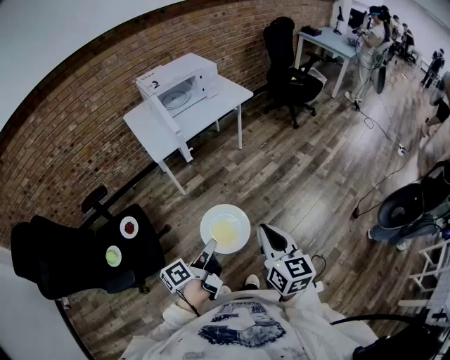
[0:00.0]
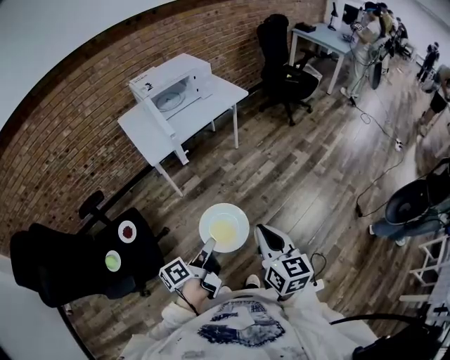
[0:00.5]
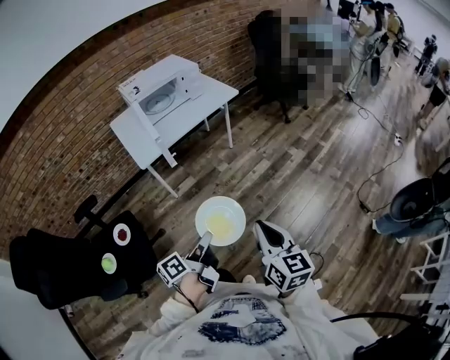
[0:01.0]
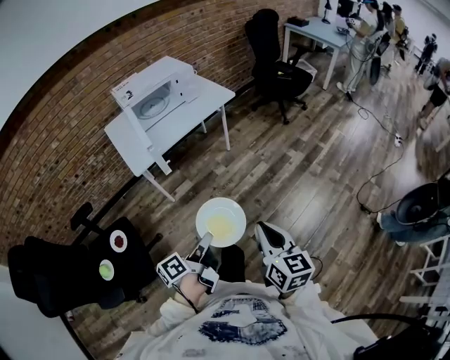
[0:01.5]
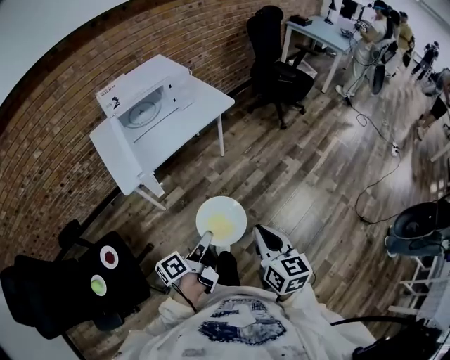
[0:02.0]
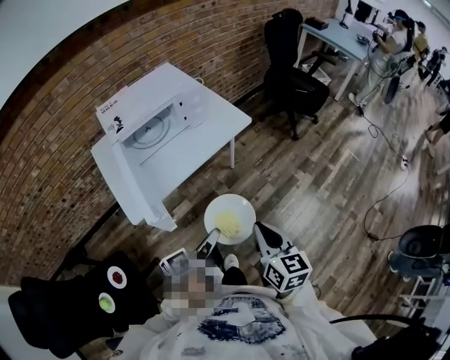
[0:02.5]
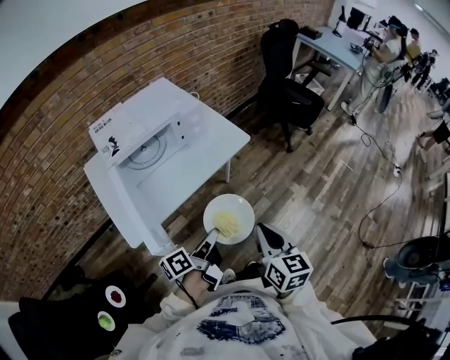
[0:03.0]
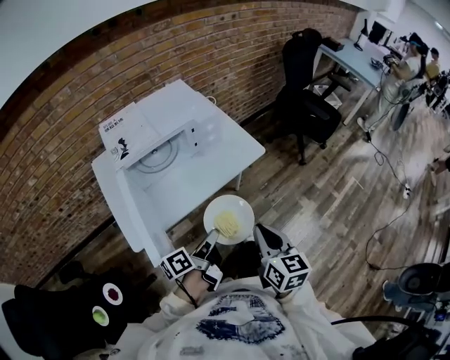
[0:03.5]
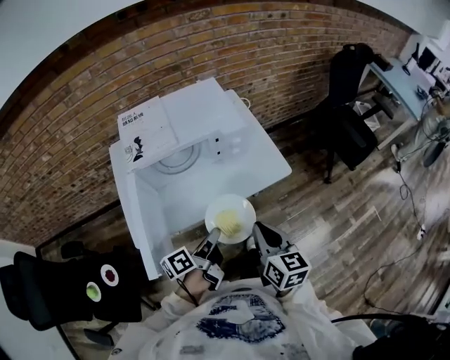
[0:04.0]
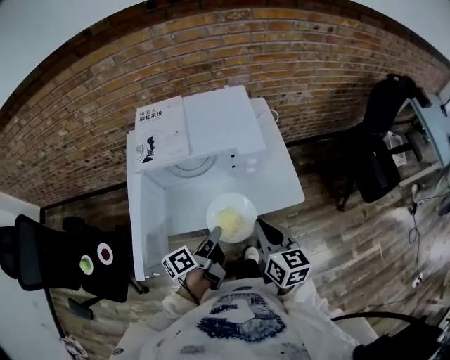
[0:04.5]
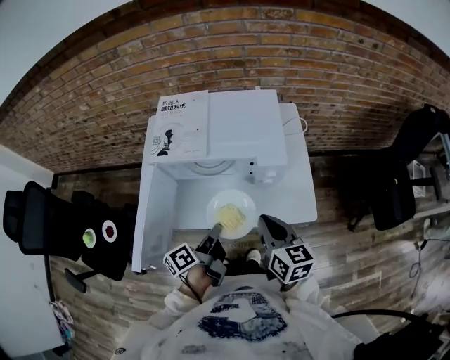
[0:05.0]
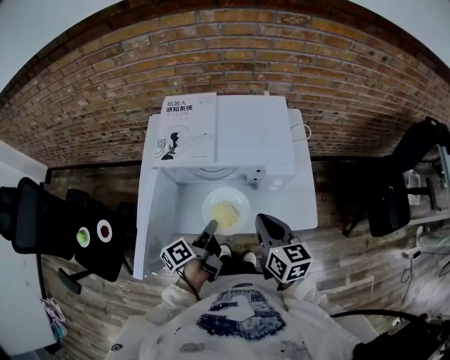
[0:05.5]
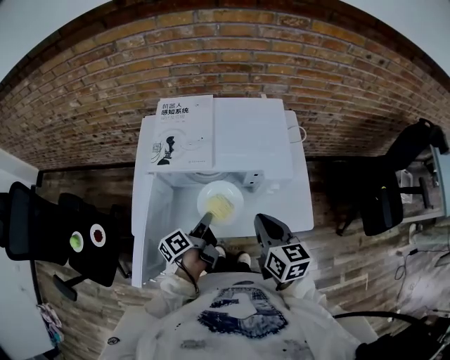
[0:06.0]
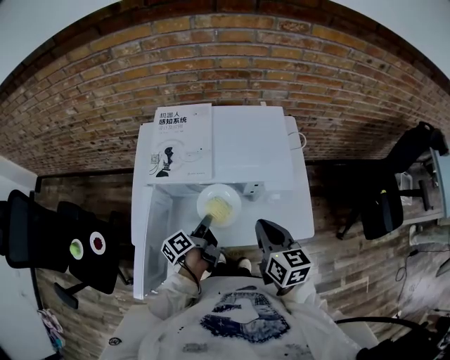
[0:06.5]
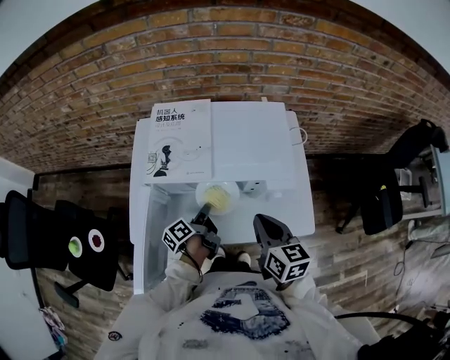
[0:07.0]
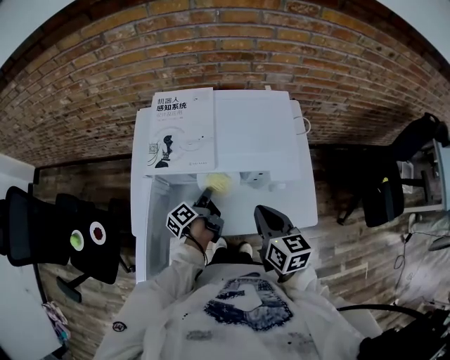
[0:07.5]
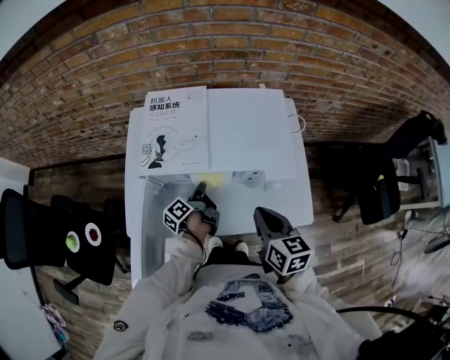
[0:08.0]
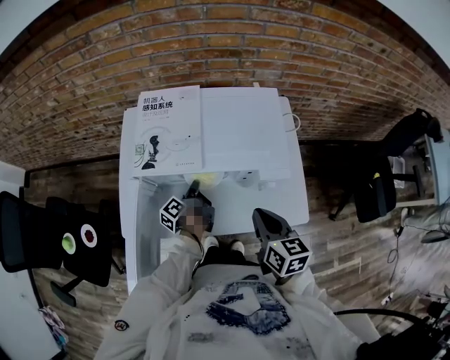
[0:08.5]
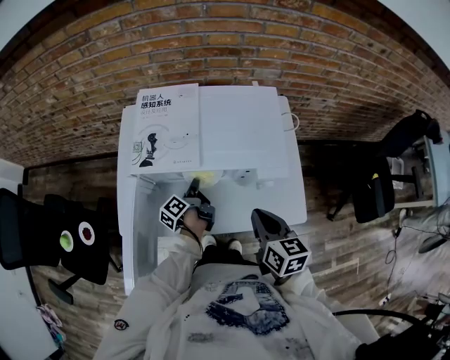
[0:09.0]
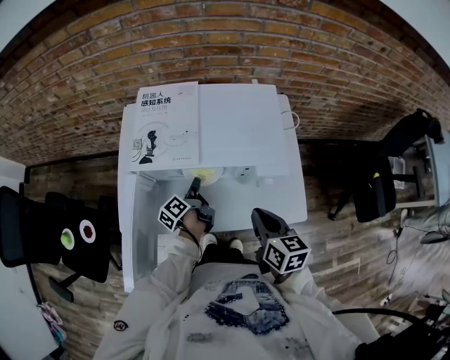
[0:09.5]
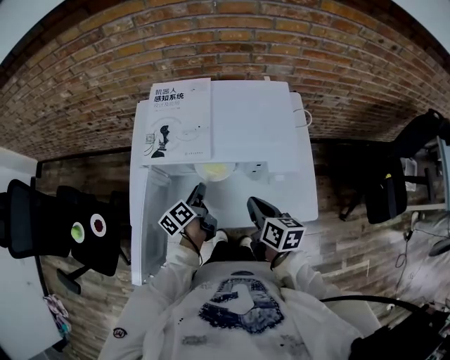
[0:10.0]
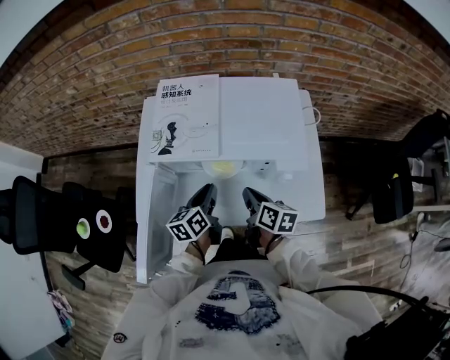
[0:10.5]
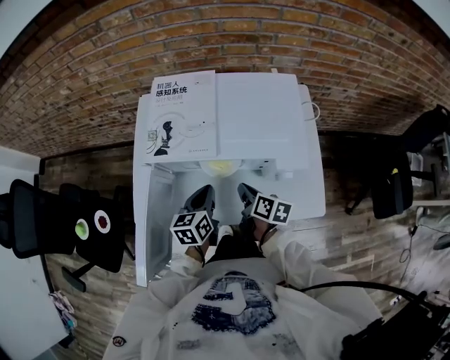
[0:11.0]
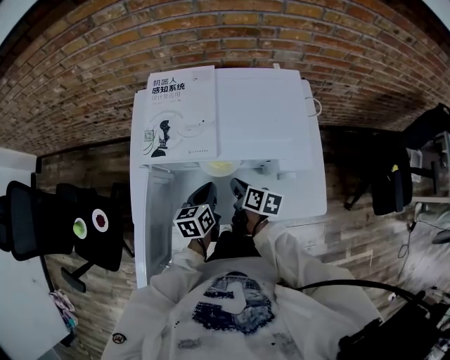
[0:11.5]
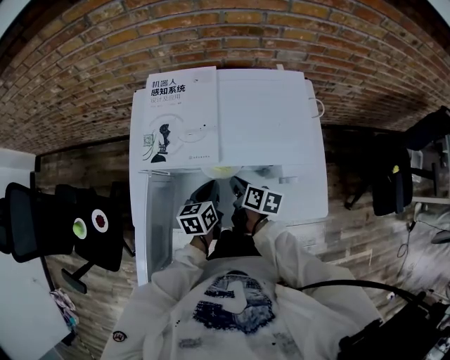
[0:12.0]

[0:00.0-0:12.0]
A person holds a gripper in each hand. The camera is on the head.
0:00.0 to 0:02.0: Both grippers move forward, some 25 cm.
0:02.0 to 0:04.0: The pair of grippers is taken forward, about 40 cm.
0:04.0 to 0:06.0: The right gripper ends up roughly 20 cm from where it was, and changes its angle by approximately 20 degrees; the left gripper changes place by some 20 cm, and rotates about 30 degrees.
0:06.0 to 0:08.0: The left gripper goes roughly 15 cm forward and downward.
0:08.0 to 0:10.0: The right gripper goes roughly 5 cm downward, while the left gripper swivels some 20 degrees, and opens its fingers.
0:10.0 to 0:12.0: The left gripper swivels approximately 40 degrees, and closes; the right gripper goes about 15 cm downward, forward and to the left.

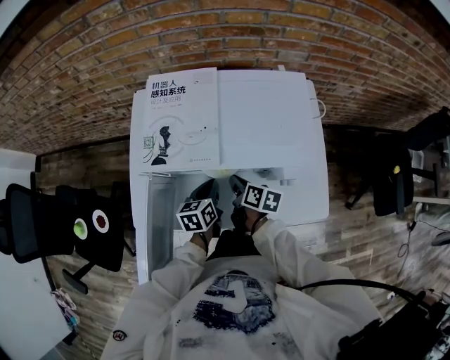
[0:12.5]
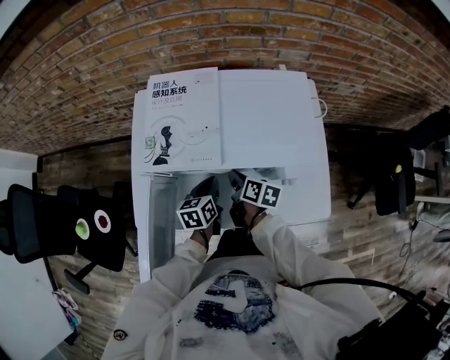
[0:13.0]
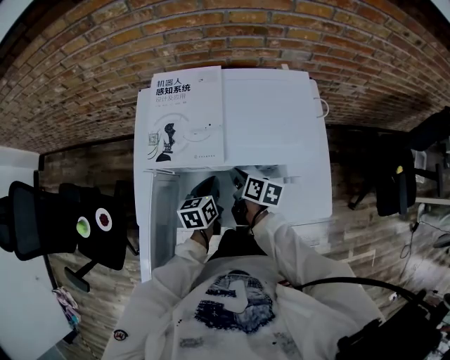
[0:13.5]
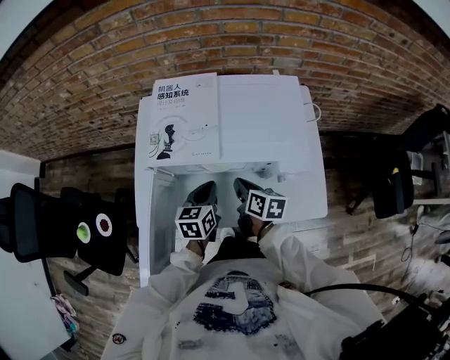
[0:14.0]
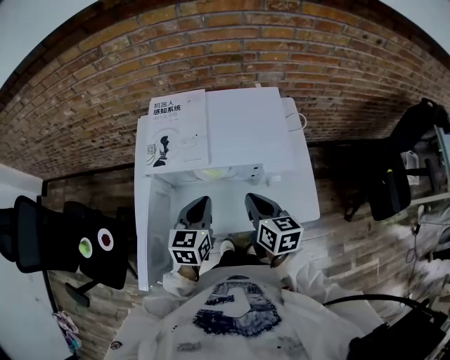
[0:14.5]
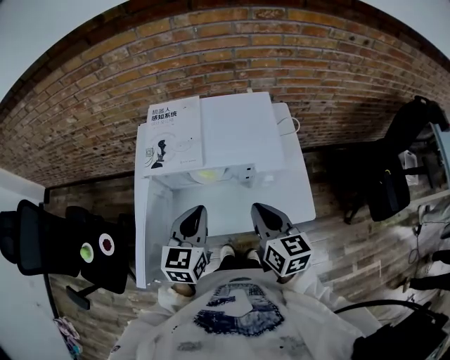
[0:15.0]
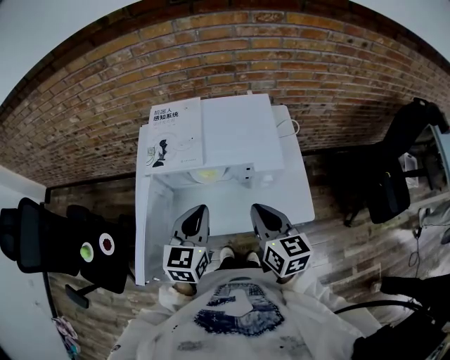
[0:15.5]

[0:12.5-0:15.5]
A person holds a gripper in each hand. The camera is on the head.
0:12.5 to 0:14.0: Both grippers travel together upward, about 5 cm.
0:14.0 to 0:15.5: The left gripper goes about 20 cm upward and backward, and swivels roughly 20 degrees. The right gripper goes approximately 25 cm upward, backward and to the right, and changes its angle by some 30 degrees.

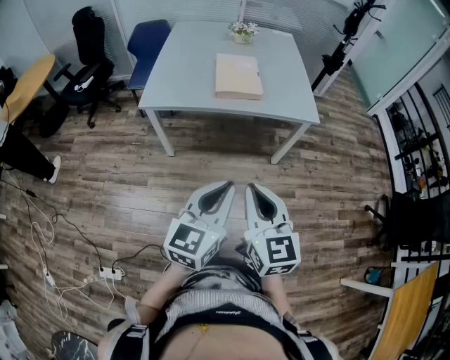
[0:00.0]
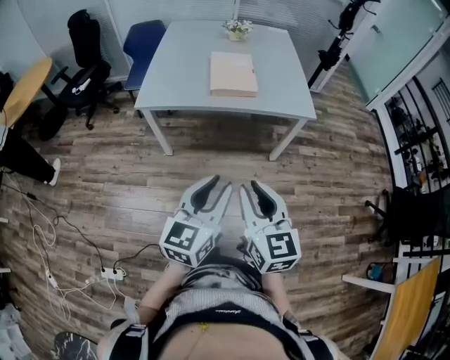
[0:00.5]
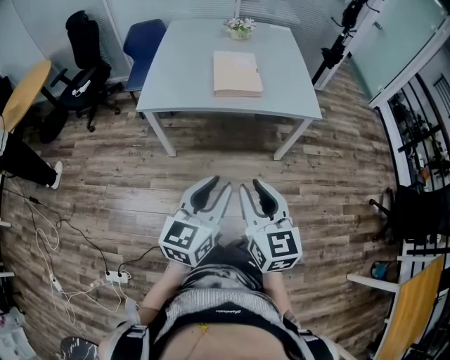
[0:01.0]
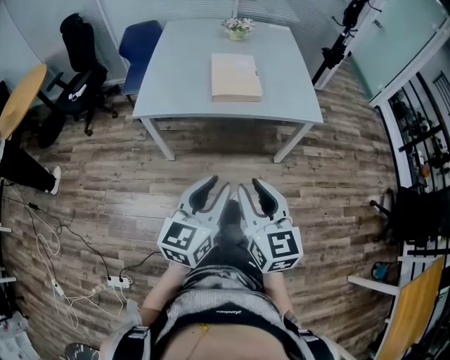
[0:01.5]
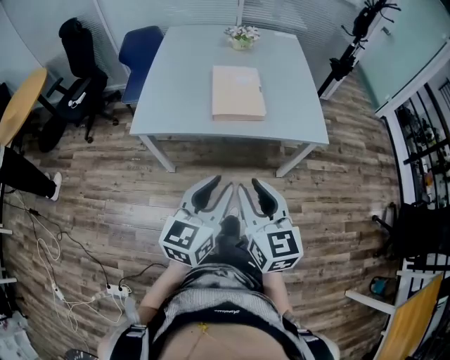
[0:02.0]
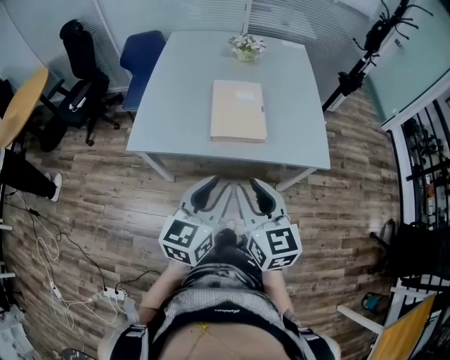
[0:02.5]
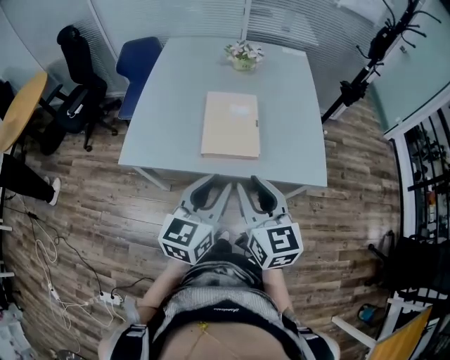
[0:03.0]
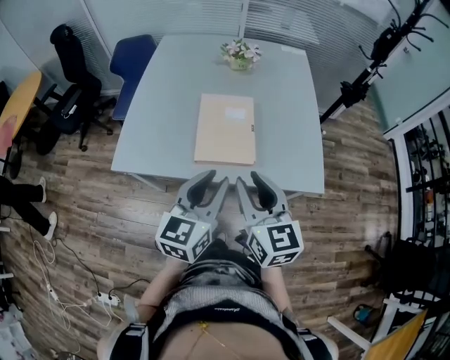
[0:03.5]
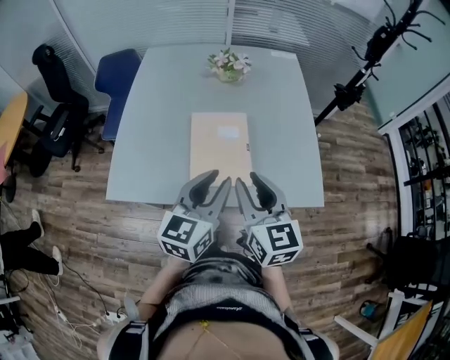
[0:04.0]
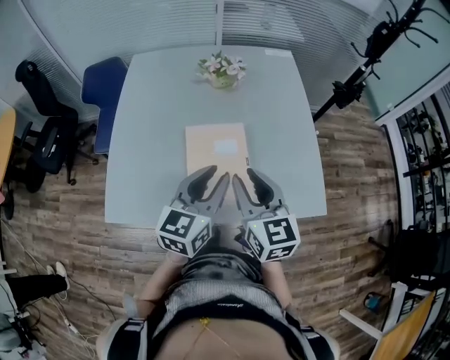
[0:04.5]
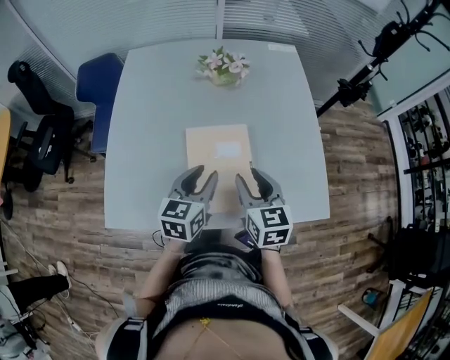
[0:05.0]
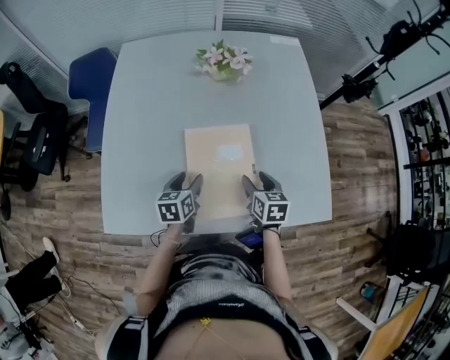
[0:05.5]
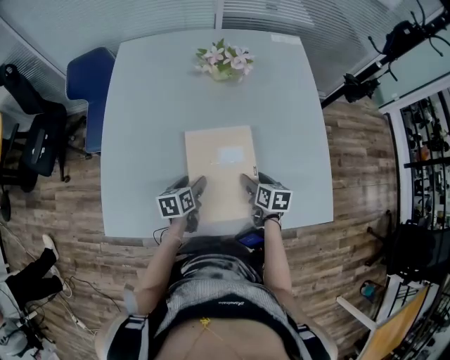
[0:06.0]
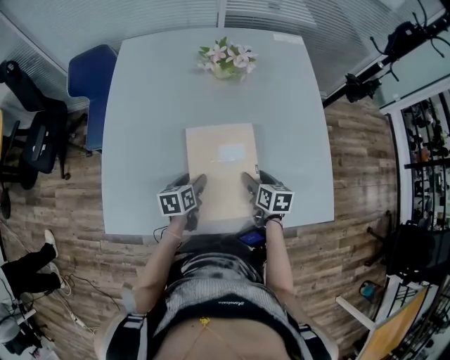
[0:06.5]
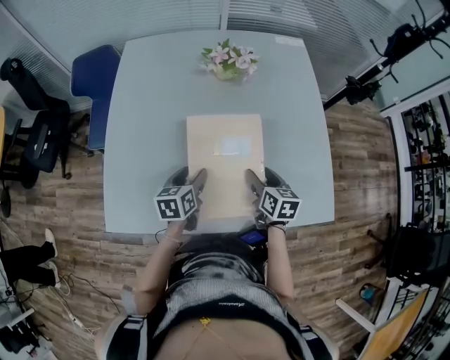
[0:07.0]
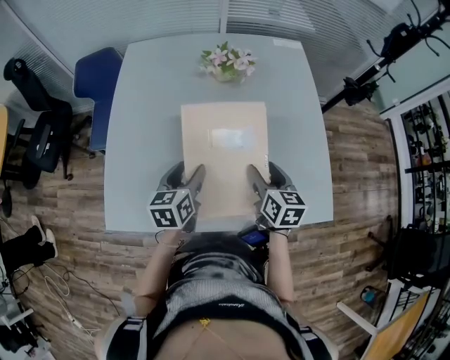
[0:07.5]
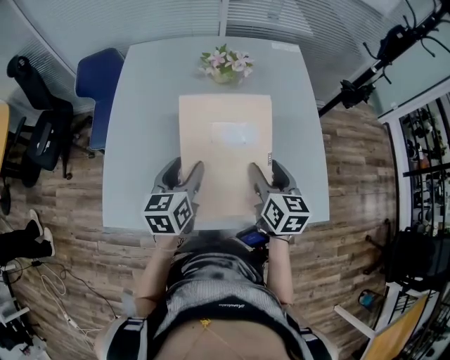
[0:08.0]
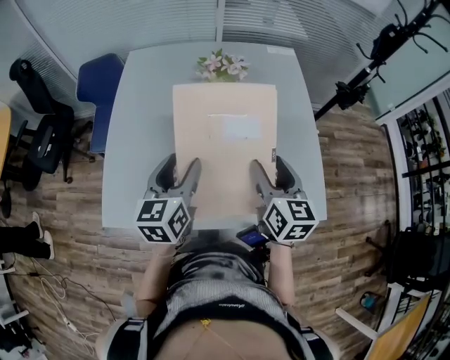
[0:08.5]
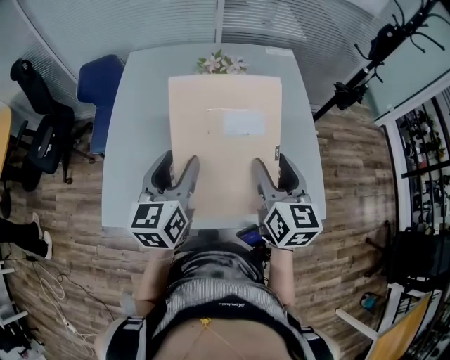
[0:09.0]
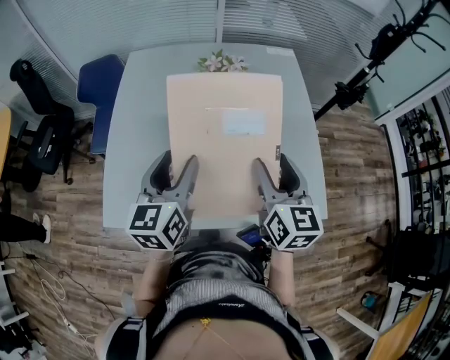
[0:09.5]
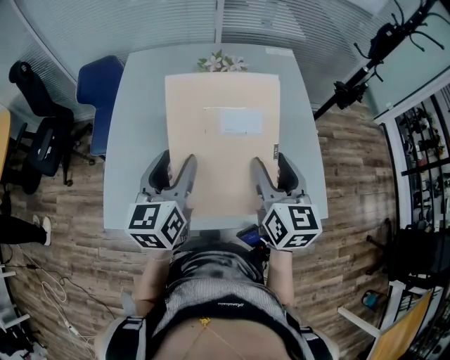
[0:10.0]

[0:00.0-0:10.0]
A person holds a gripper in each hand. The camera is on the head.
0:00.0 to 0:02.0: The two grippers go about 20 cm forward. The right gripper opens its fingers.
0:02.0 to 0:04.0: Both grippers travel together forward, some 35 cm.
0:04.0 to 0:06.0: The two grippers go roughly 35 cm downward and forward. The right gripper angles its fingers downward, by roughly 30 degrees, and opens its fingers; the left gripper tips its fingers downward by about 30 degrees, and opens.
0:06.0 to 0:08.0: Both grippers move upward, some 20 cm. The right gripper swivels about 30 degrees, while the left gripper swivels roughly 30 degrees.
0:08.0 to 0:10.0: The grippers both shift upward by roughly 10 cm.

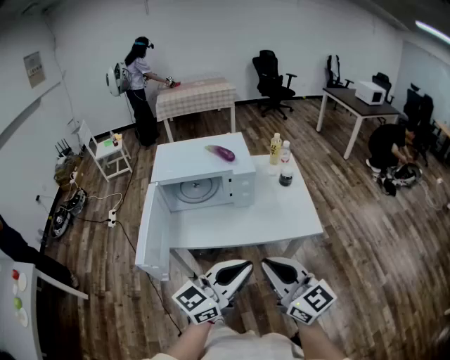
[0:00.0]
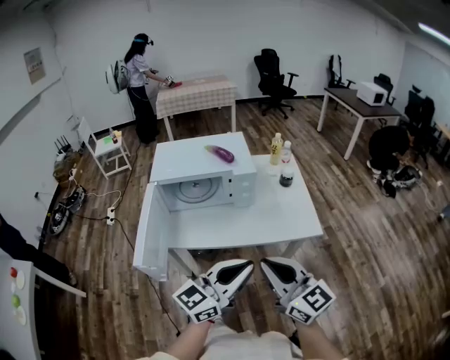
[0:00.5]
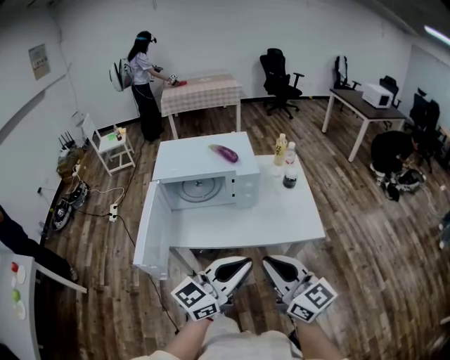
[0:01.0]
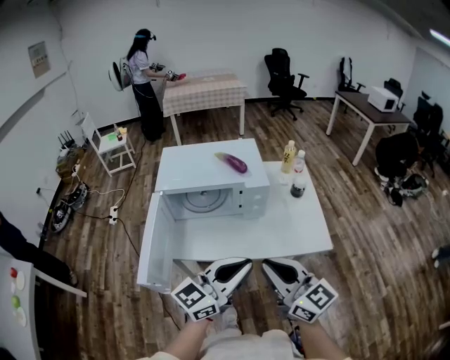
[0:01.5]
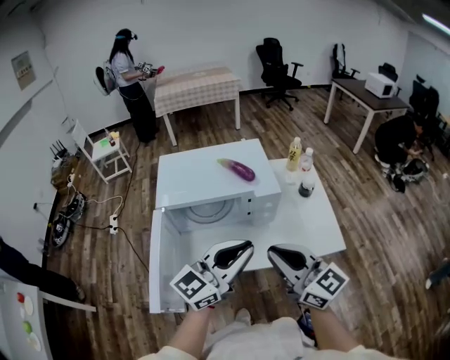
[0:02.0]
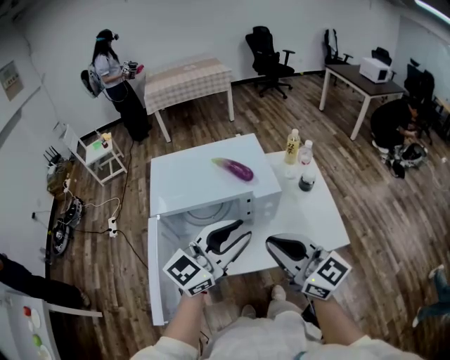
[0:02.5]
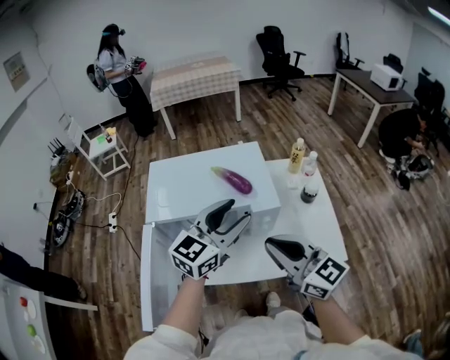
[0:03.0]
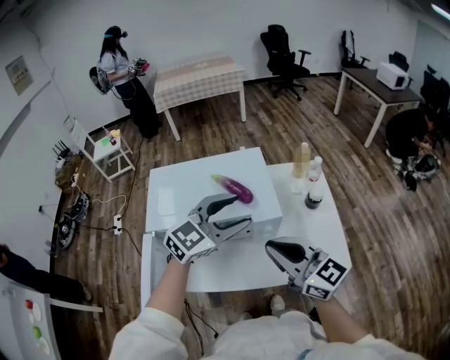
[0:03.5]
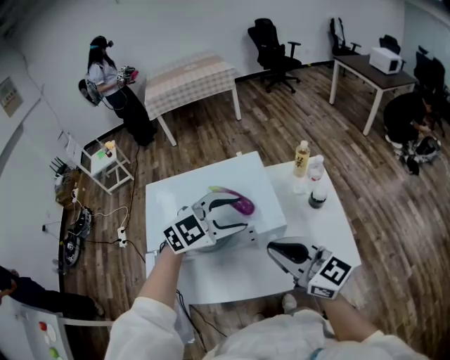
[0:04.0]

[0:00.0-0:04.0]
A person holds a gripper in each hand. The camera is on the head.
0:00.0 to 0:02.0: Both grippers travel together forward and to the left, about 20 cm.
0:02.0 to 0:04.0: The left gripper shifts some 25 cm forward, angles its fingers downward, by roughly 40 degrees, and opens. The right gripper is displaced forward by roughly 15 cm.
